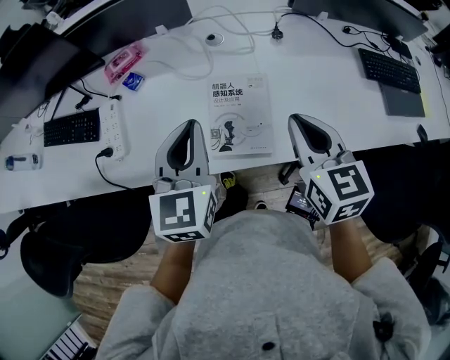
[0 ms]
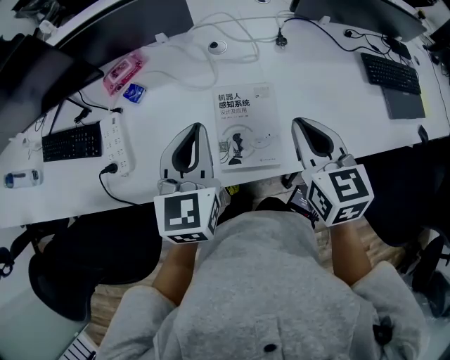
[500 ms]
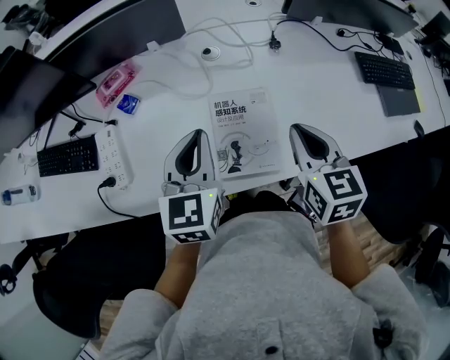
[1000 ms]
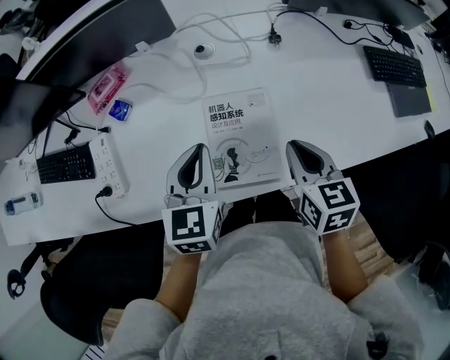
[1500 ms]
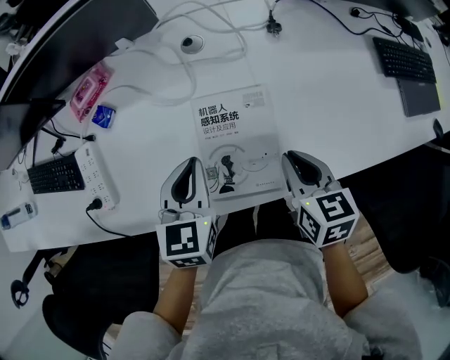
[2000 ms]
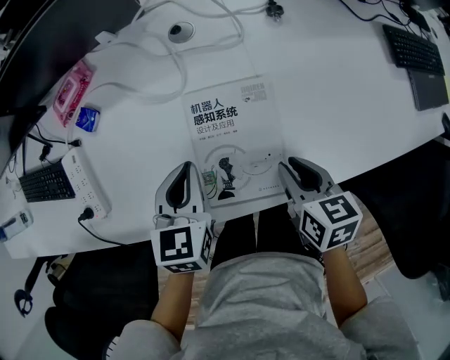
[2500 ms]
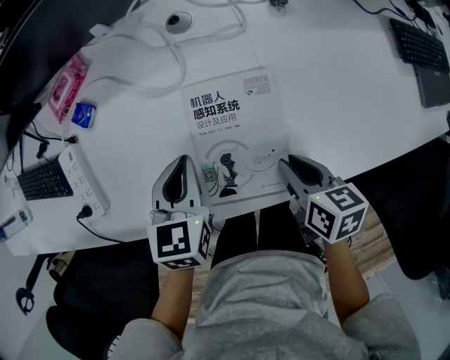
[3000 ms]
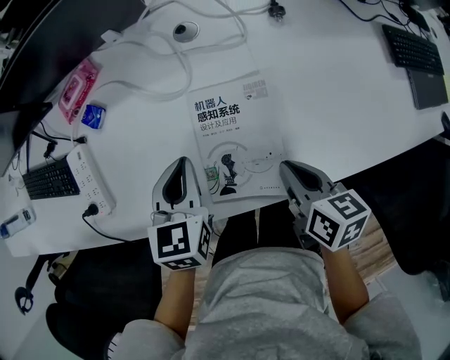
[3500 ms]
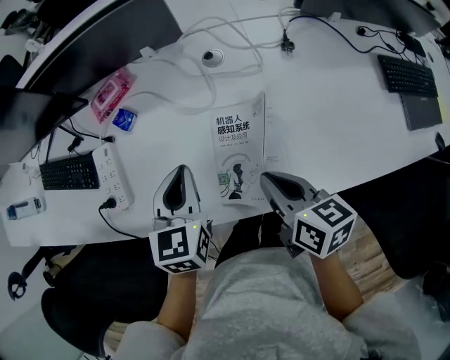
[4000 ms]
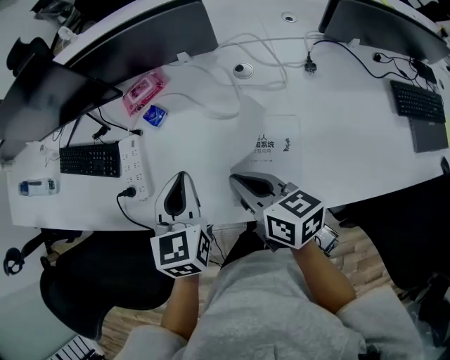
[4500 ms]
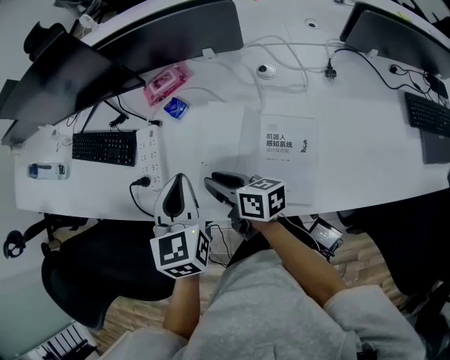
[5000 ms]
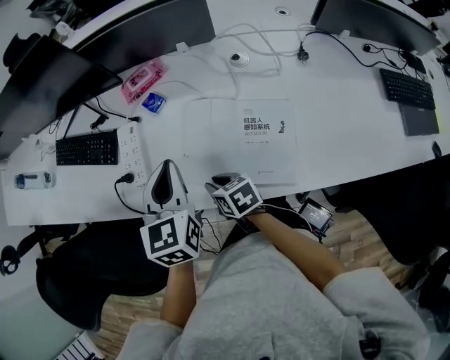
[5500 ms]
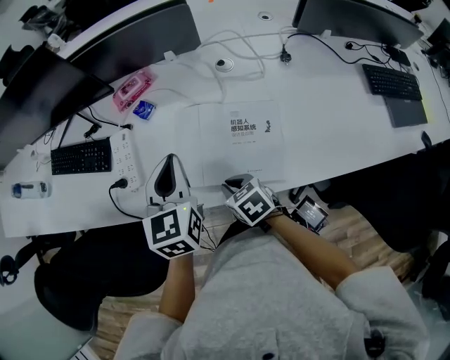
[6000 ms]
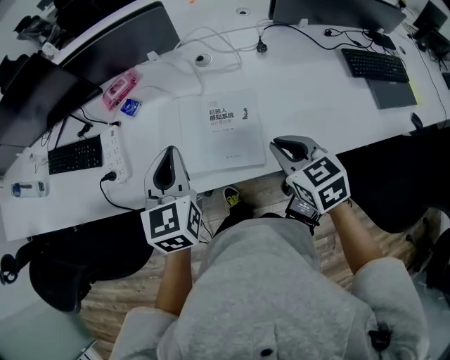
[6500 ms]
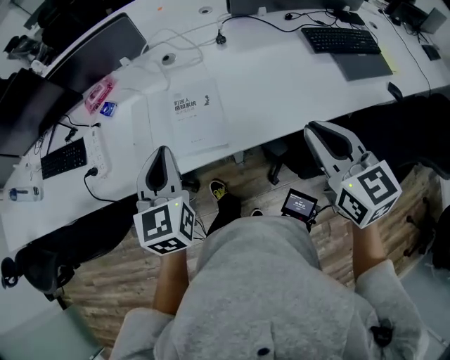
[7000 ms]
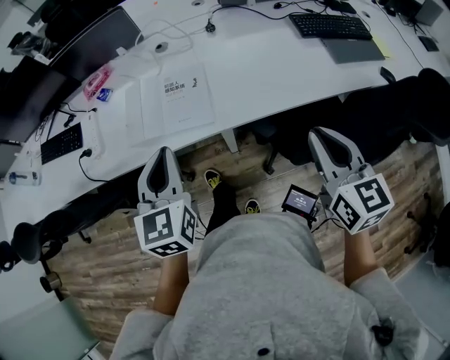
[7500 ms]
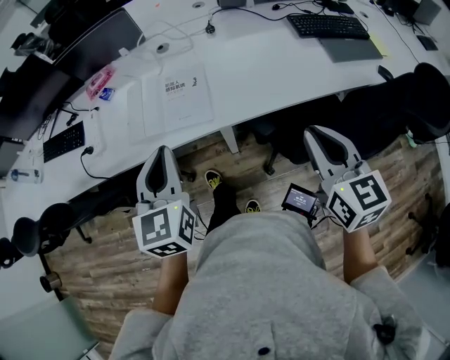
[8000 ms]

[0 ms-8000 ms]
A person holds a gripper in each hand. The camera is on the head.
0 ms to 2000 ms: Both grippers move downward, about 15 cm. The right gripper rotates about 20 degrees.
2000 ms to 4000 ms: The right gripper heads to the left, covering about 10 cm, and swivels about 20 degrees; the left gripper is displaced to the left by some 5 cm, and moves about 5 cm downward and comes back.
4000 ms to 6000 ms: The right gripper travels to the left and downward by approximately 20 cm, and swivels approximately 40 degrees; the left gripper heads upward and to the left, covering approximately 10 cm.
6000 ms to 8000 ms: The right gripper ends up about 50 cm from where it was, and points its fingers roughly 30 degrees further upward, while the left gripper changes place by about 30 cm.

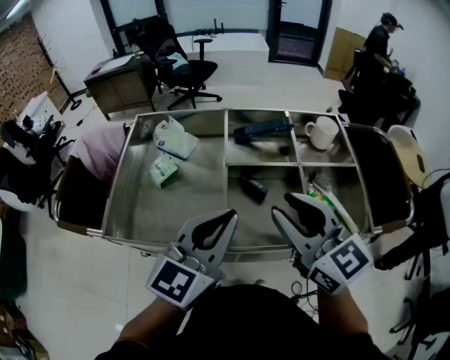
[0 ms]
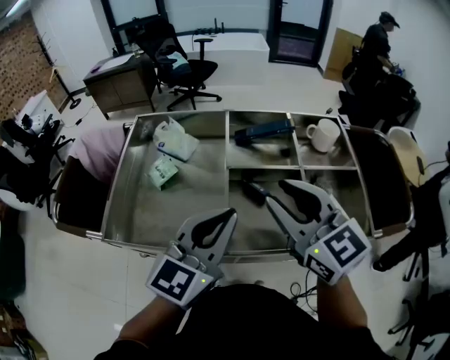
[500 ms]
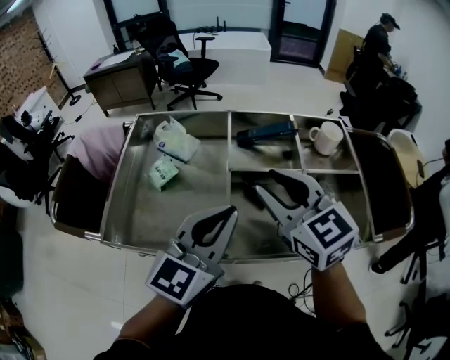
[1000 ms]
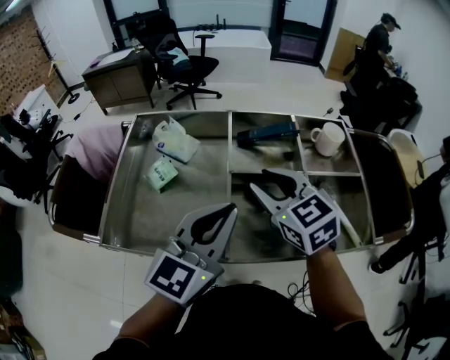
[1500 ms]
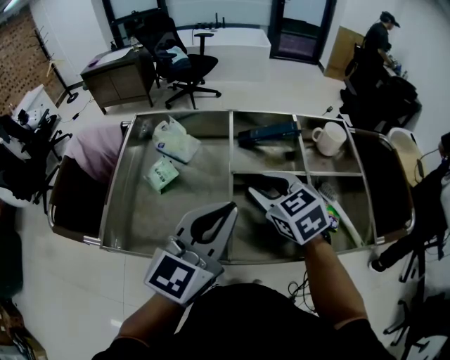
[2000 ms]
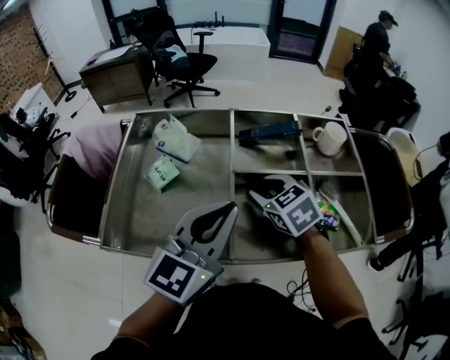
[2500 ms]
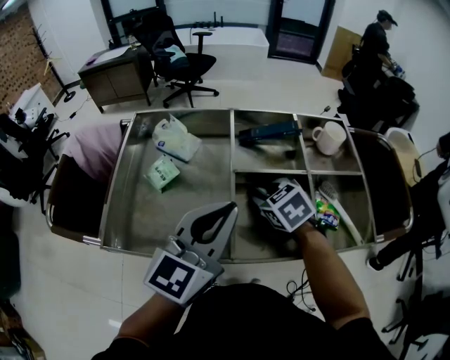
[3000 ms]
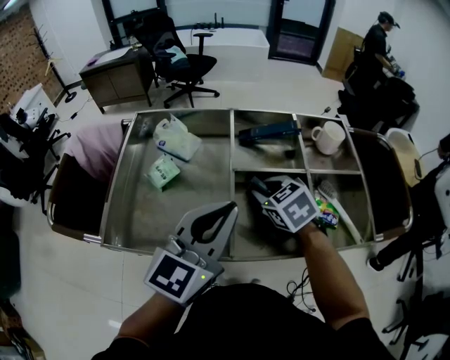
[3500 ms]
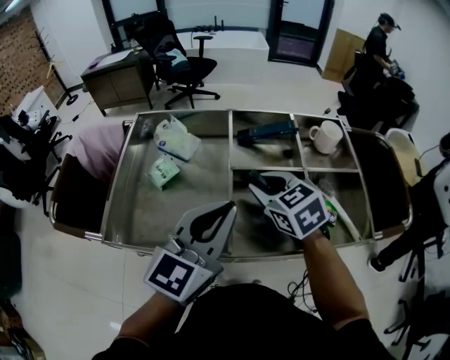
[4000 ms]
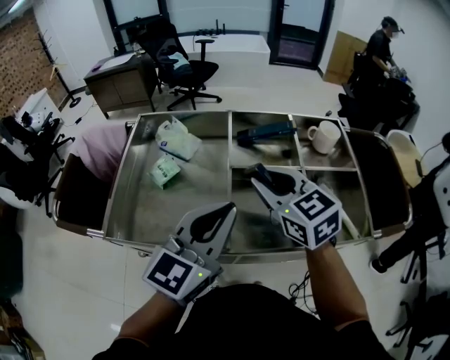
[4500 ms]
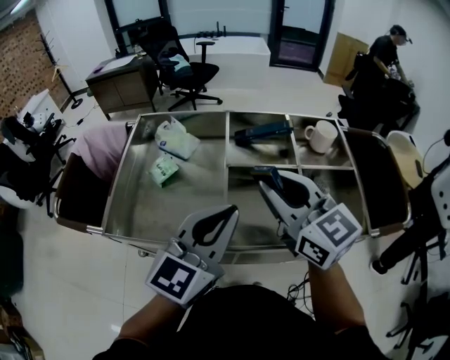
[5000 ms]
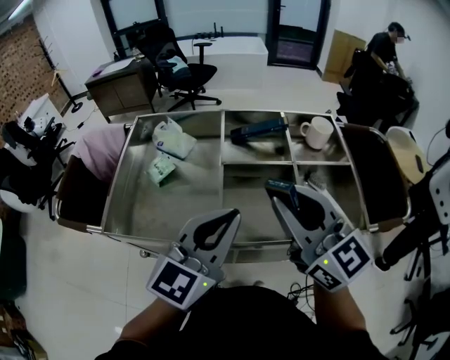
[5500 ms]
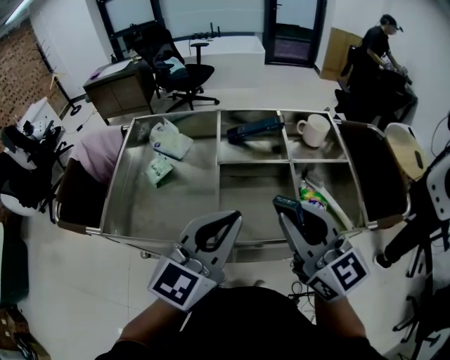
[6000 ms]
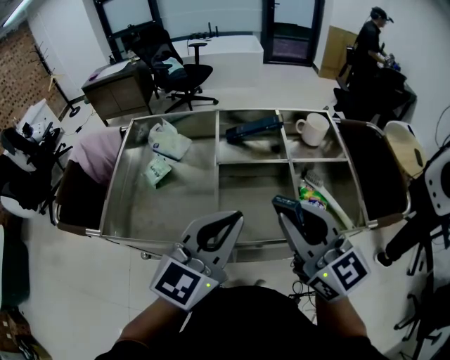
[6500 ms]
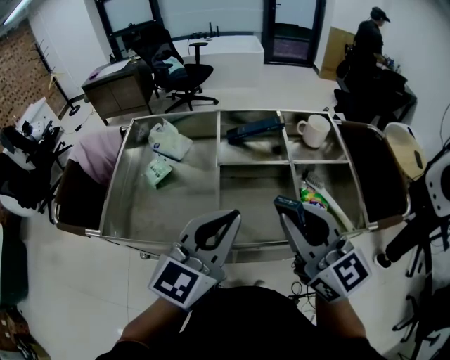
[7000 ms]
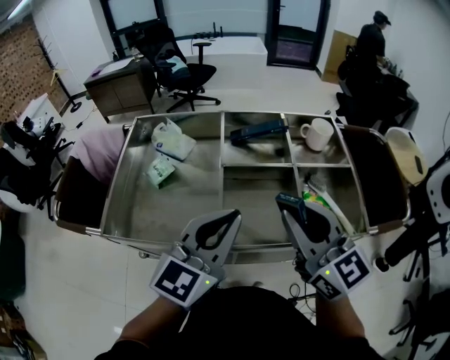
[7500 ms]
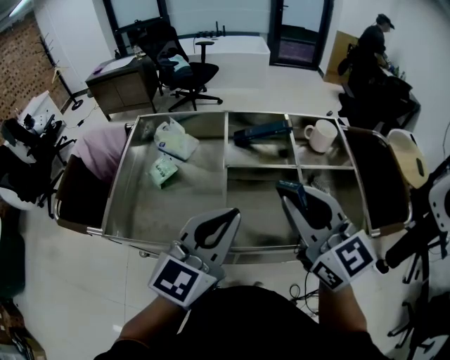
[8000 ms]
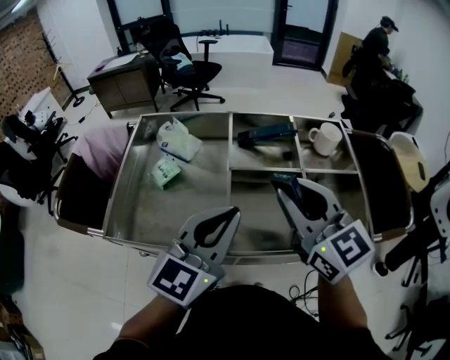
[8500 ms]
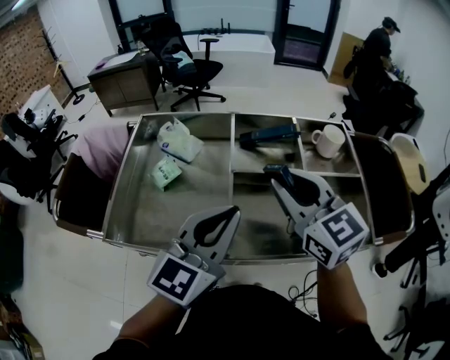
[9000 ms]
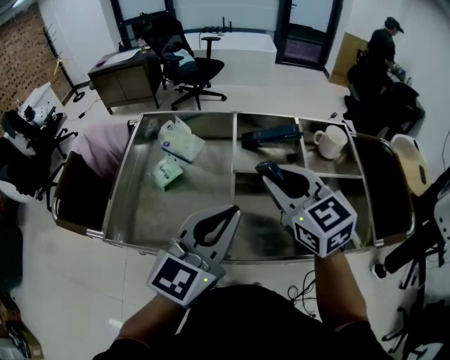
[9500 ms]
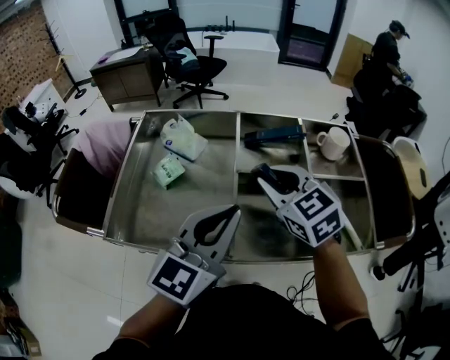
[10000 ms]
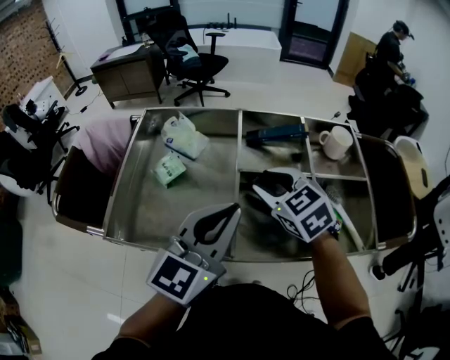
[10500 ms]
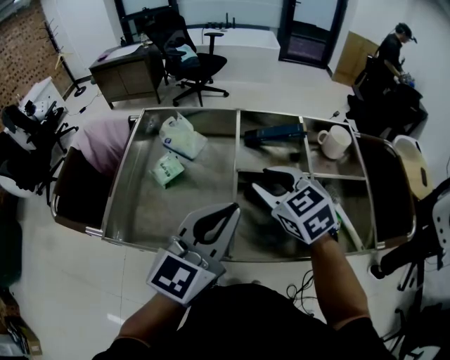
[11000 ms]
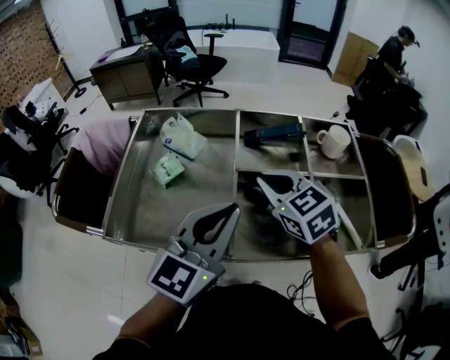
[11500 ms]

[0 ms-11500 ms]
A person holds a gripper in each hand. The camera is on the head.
0 ms to 2000 ms: The right gripper moves forward, downward and to the left, approximately 15 cm, and turns by some 30 degrees.
2000 ms to 4000 ms: The right gripper reaches approximately 5 cm downward, then returns.
4000 ms to 6000 ms: The left gripper shifts by approximately 5 cm. The right gripper shifts approximately 20 cm backward, upward and to the right, and tilts its fingers roughly 40 degrees upward.
6000 ms to 7500 ms: The grippers move only a little.
7500 ms to 9500 ms: The right gripper shifts approximately 15 cm forward and to the left.
9500 ms to 11500 ms: The right gripper shifts approximately 5 cm downward, and closes.

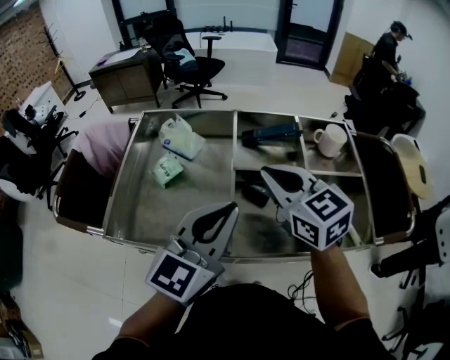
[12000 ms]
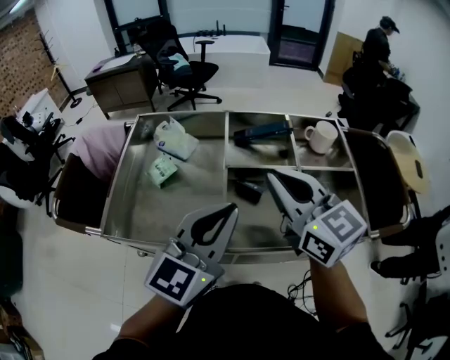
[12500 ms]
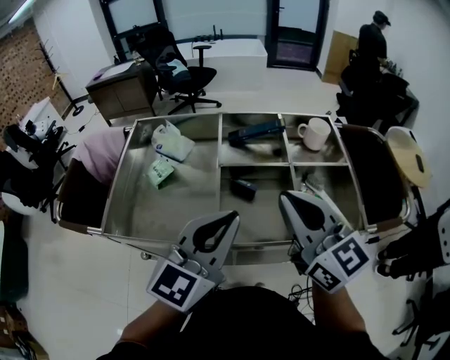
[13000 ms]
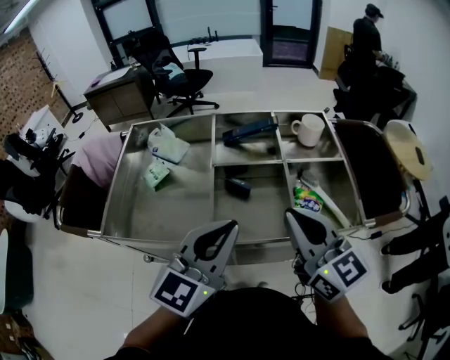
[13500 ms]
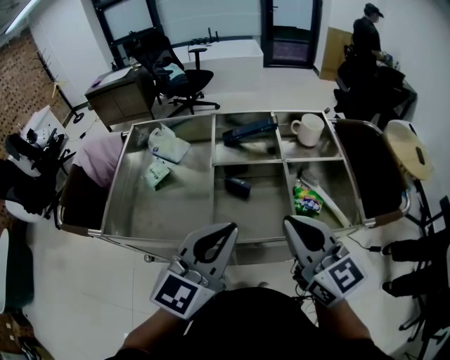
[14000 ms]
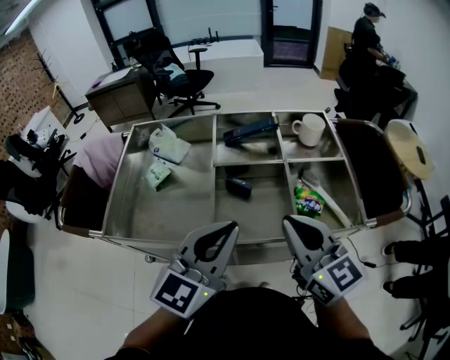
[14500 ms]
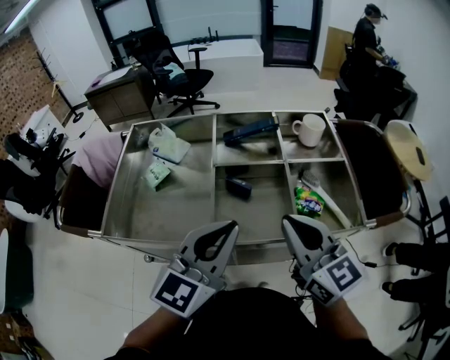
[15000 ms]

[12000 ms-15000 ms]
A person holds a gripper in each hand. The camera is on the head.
12000 ms to 13500 ms: The left gripper heads backward and to the right, covering approximately 10 cm, while the right gripper heads backward and to the right, covering about 15 cm, and changes its angle by about 20 degrees.
13500 ms to 15000 ms: The grippers stay close to where they were, moving slightly.

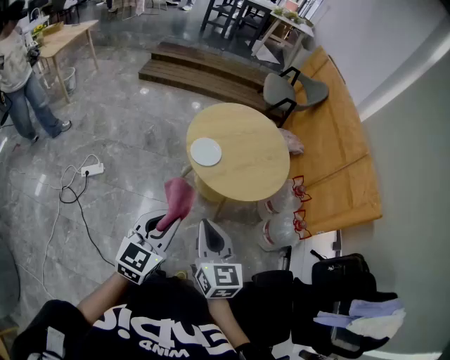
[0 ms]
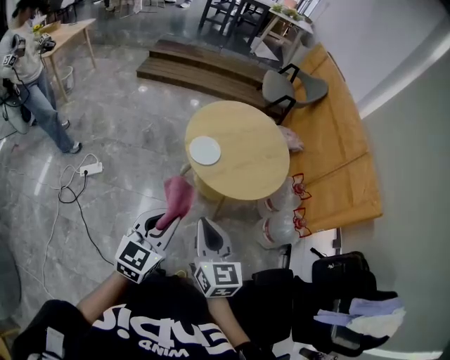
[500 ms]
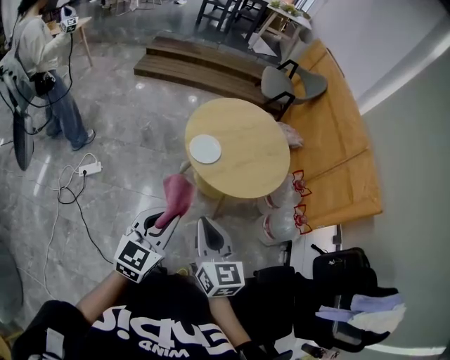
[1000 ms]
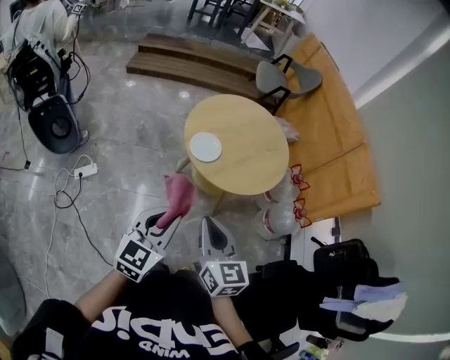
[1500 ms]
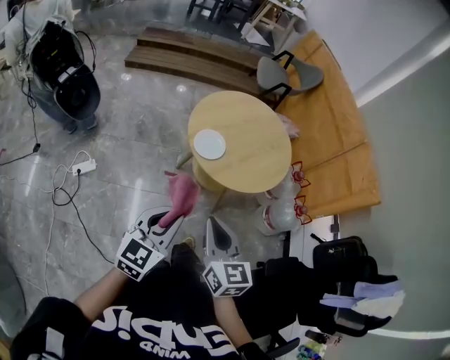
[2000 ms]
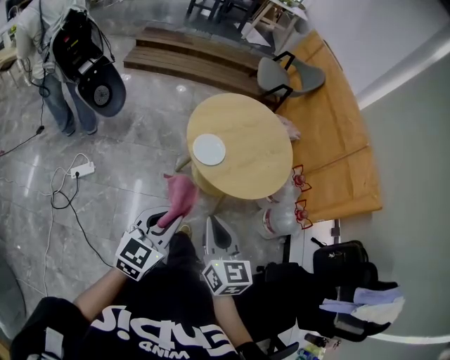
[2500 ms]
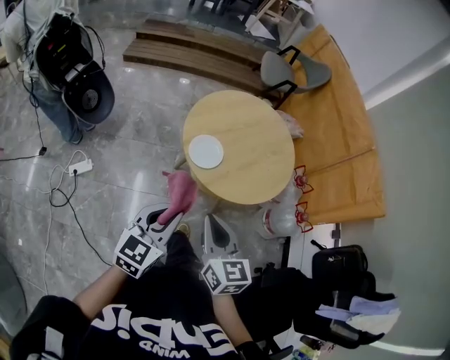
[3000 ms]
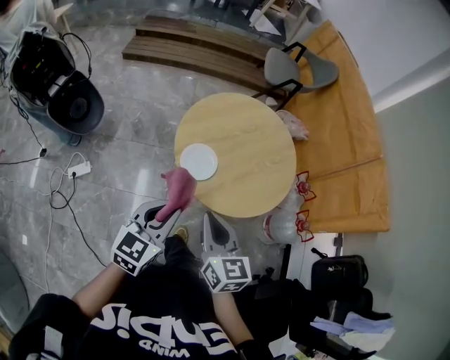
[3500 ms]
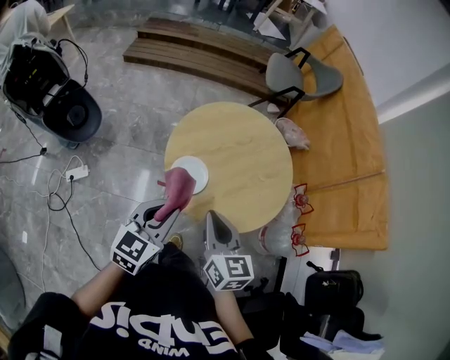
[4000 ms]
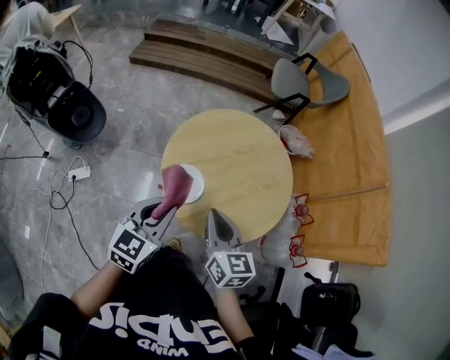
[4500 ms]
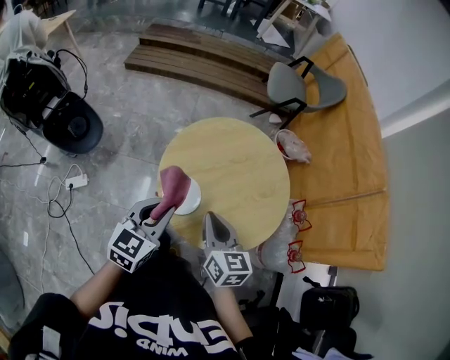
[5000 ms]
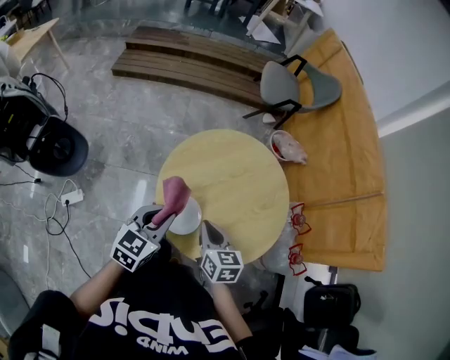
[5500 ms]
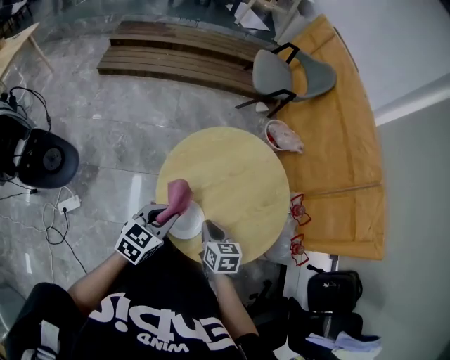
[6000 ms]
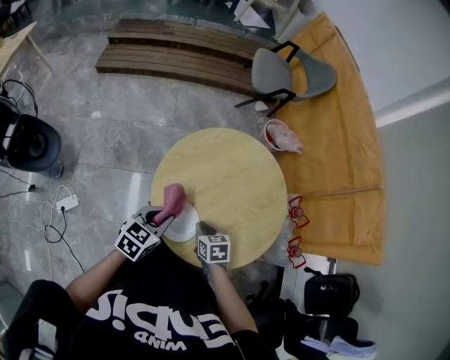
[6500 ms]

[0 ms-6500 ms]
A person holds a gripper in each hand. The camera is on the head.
0 ms to 2000 ms: The right gripper ends up some 5 cm from where it was; the left gripper shifts about 5 cm to the left.
2000 ms to 4500 ms: The grippers both shift forward by some 30 cm.
4500 ms to 6500 ms: The left gripper moves forward and downward, some 20 cm, and turns by approximately 30 degrees; the right gripper goes roughly 25 cm downward and forward, and points its fingers about 40 degrees further downward.
